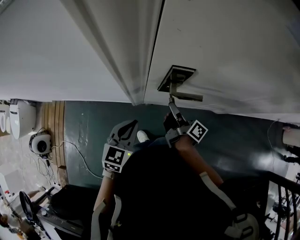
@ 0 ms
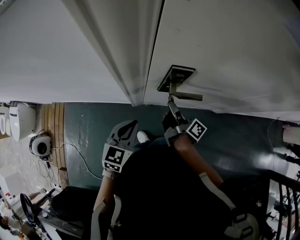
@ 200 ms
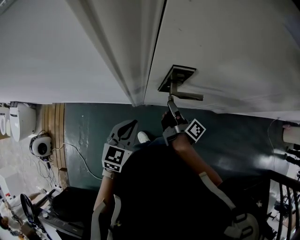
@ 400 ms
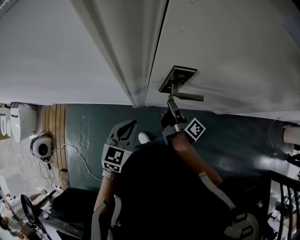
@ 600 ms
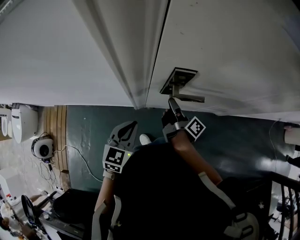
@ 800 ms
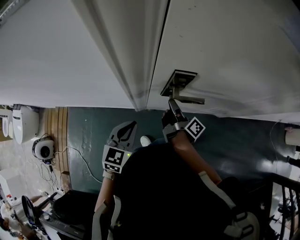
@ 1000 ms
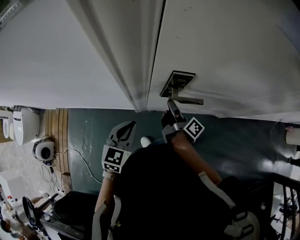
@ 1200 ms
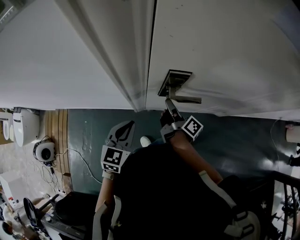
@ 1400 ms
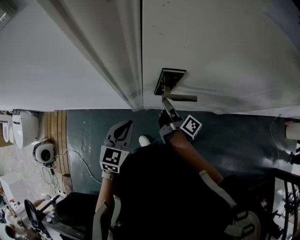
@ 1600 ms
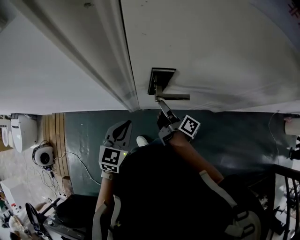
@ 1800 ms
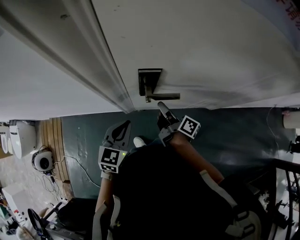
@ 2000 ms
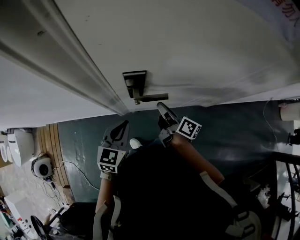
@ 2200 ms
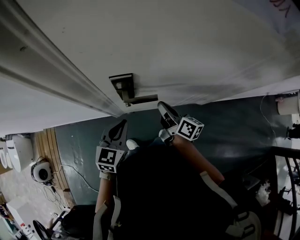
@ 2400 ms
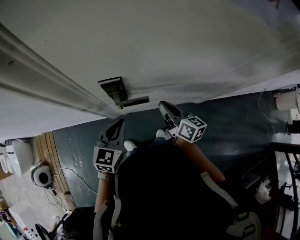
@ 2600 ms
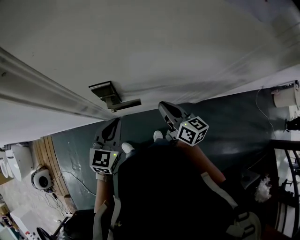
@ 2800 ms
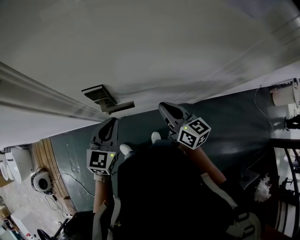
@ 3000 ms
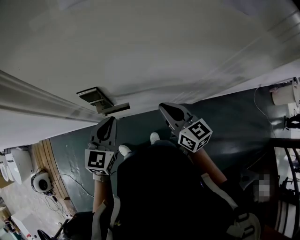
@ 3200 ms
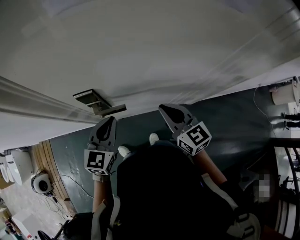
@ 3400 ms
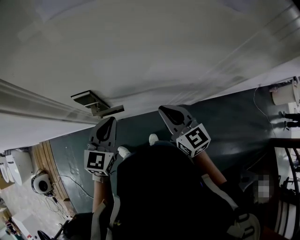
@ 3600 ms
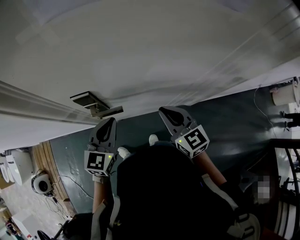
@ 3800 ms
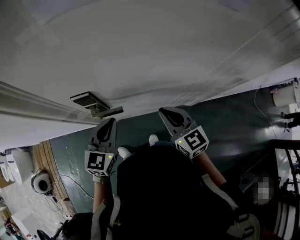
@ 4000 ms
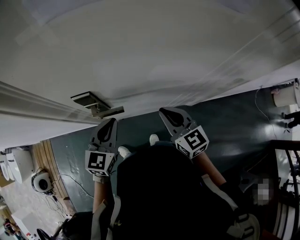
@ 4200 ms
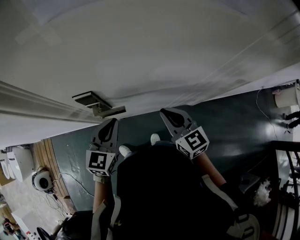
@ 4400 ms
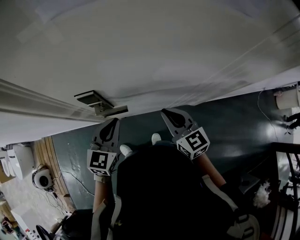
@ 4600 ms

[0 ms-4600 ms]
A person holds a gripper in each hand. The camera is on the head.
0 ms to 1600 ms: The grippers make only small movements.
1600 ms to 3000 ms: The right gripper is displaced to the right and upward by some 25 cm, and rotates around the line of its fingers by some 50 degrees, counterclockwise from behind; the left gripper heads to the right, covering about 15 cm.
3000 ms to 4600 ms: The right gripper rotates roughly 20 degrees.

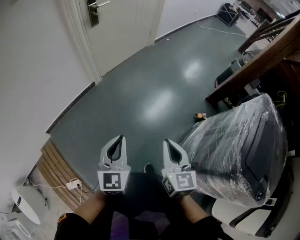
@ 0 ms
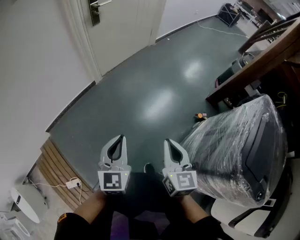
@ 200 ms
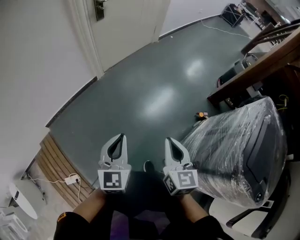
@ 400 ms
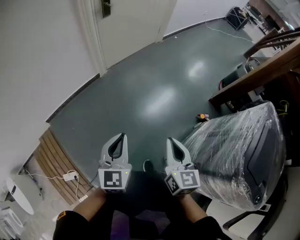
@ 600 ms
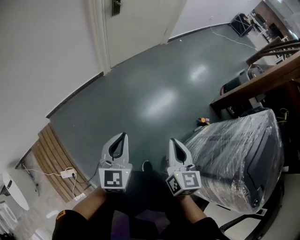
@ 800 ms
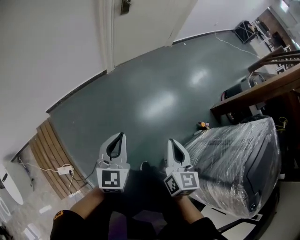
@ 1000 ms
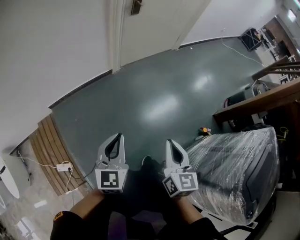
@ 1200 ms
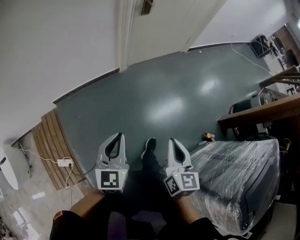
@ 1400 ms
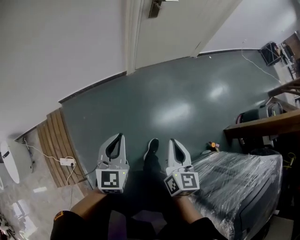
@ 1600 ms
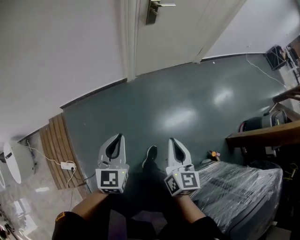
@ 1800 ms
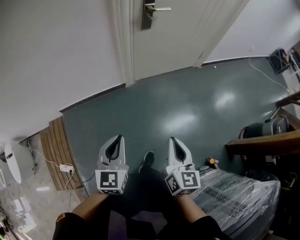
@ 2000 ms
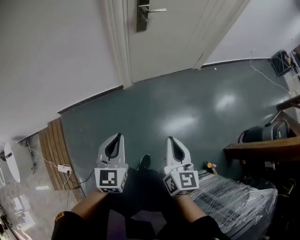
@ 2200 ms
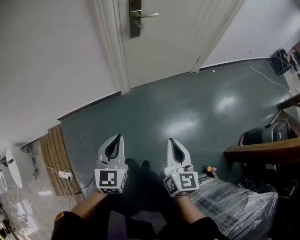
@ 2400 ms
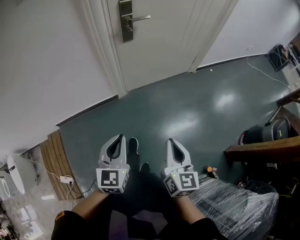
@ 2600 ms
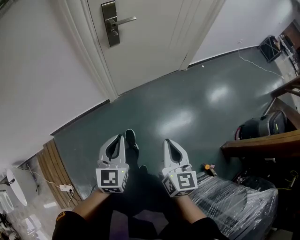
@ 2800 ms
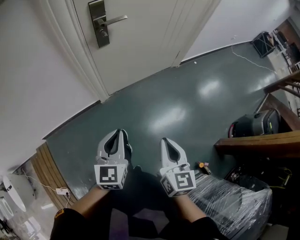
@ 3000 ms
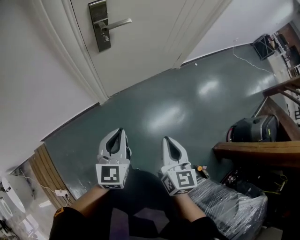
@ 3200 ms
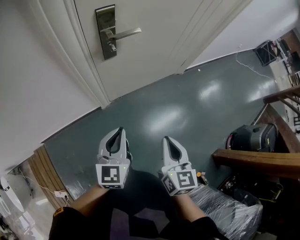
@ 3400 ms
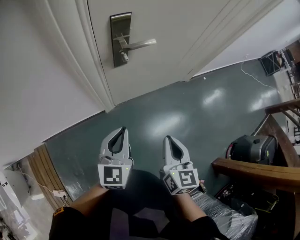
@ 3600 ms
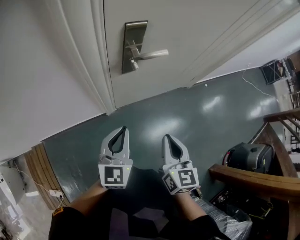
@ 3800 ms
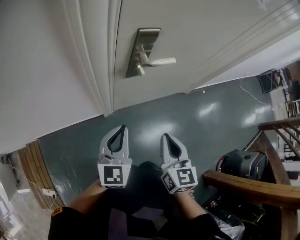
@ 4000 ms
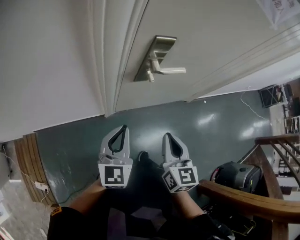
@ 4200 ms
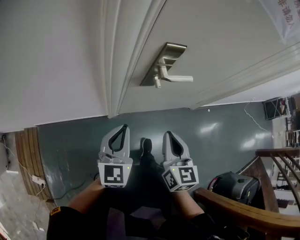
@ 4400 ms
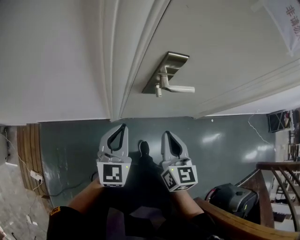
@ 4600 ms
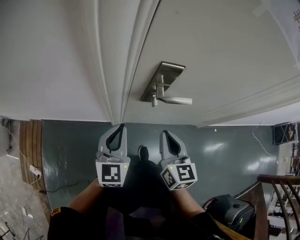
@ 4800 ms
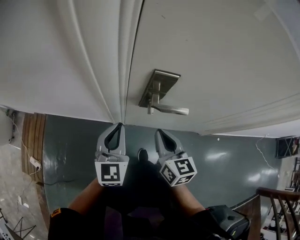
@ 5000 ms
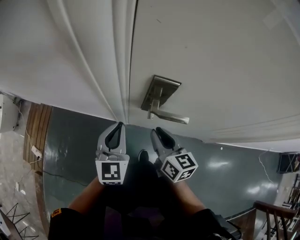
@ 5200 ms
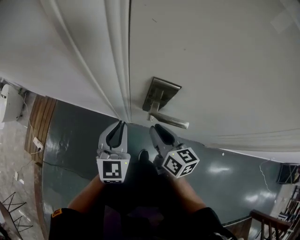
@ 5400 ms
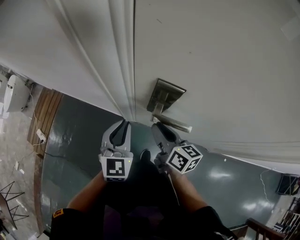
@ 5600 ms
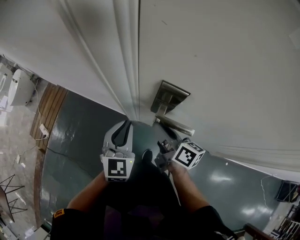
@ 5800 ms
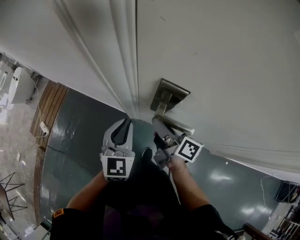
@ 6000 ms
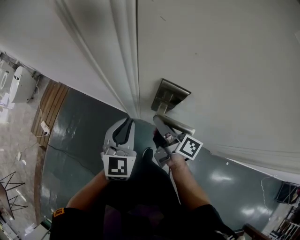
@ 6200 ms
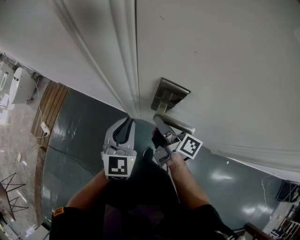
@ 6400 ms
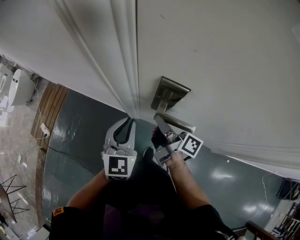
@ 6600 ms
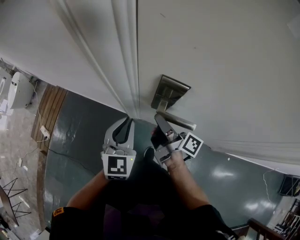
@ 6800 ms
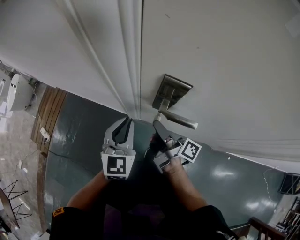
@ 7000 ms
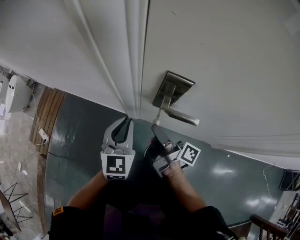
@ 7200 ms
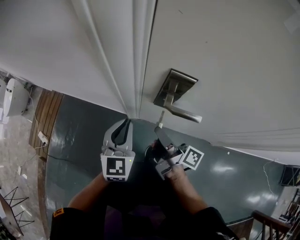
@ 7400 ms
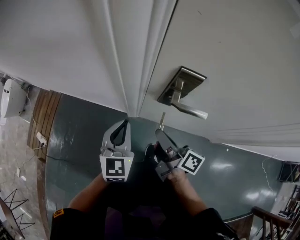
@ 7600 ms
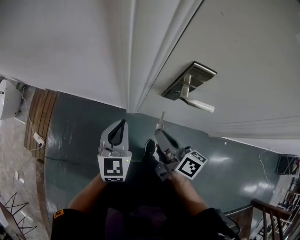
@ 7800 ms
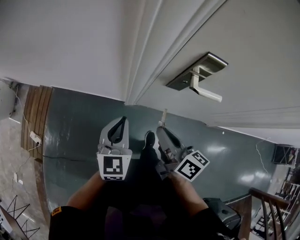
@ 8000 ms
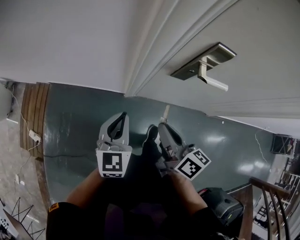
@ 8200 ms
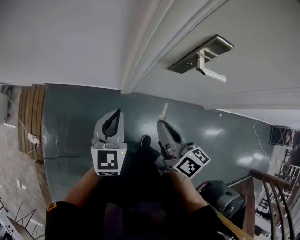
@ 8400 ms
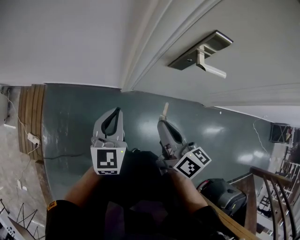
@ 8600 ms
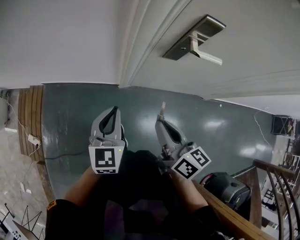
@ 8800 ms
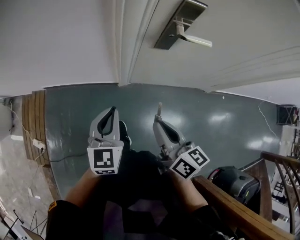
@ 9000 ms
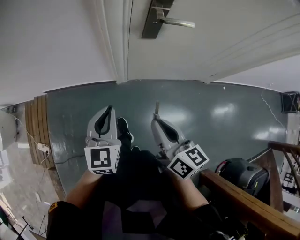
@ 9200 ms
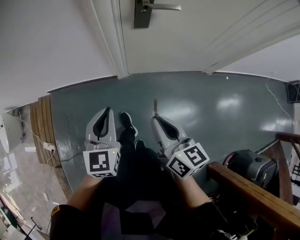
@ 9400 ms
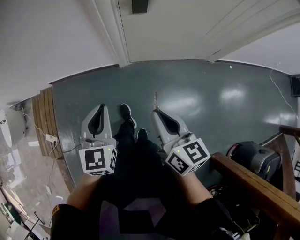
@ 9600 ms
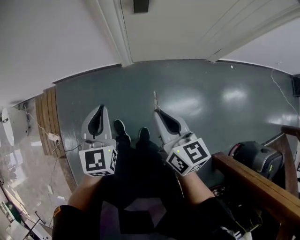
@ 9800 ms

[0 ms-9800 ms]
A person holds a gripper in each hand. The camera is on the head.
0 ms to 1400 ms: The left gripper is displaced to the left by some 15 cm; the right gripper heads to the left and forward, covering about 15 cm.
1400 ms to 2800 ms: Both grippers move forward and to the right, some 35 cm.
2800 ms to 4200 ms: Both grippers move forward, some 35 cm.
4200 ms to 5600 ms: The left gripper ends up some 15 cm from where it was, and turns by approximately 40 degrees. The right gripper changes place by some 20 cm, and turns by some 60 degrees.
5600 ms to 7000 ms: The right gripper rotates around the line of its fingers by roughly 40 degrees, clockwise from behind.
7000 ms to 8400 ms: The right gripper goes some 20 cm to the left and backward, and twists some 40 degrees counterclockwise, seen from behind; the left gripper shifts about 15 cm to the left.
8400 ms to 9800 ms: The grippers both shift backward by some 25 cm.

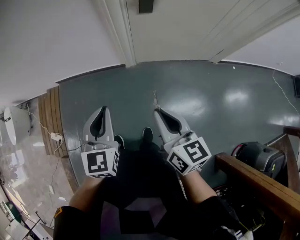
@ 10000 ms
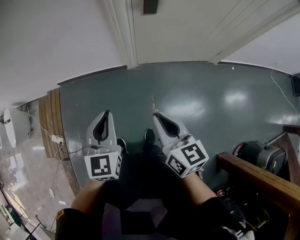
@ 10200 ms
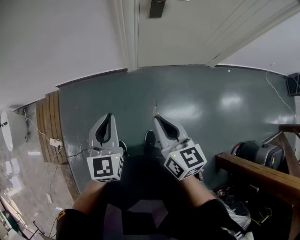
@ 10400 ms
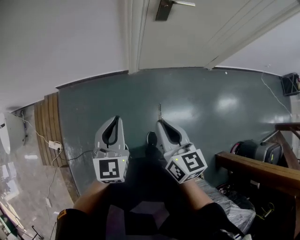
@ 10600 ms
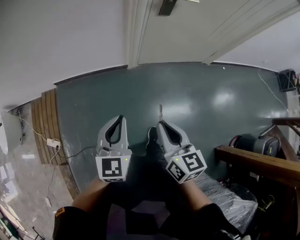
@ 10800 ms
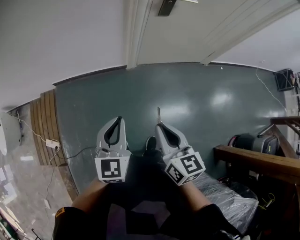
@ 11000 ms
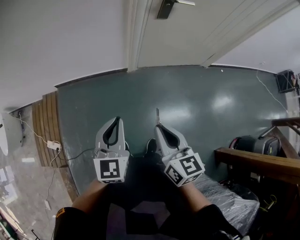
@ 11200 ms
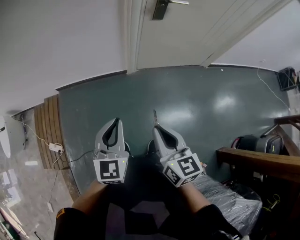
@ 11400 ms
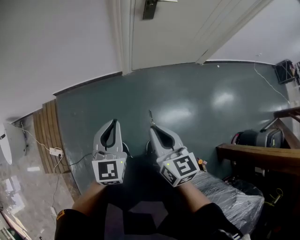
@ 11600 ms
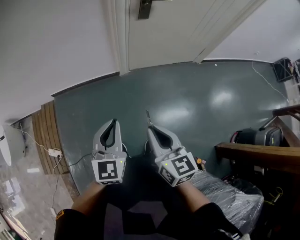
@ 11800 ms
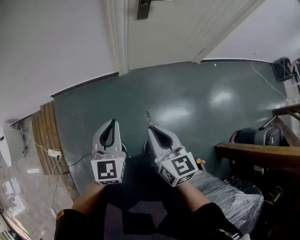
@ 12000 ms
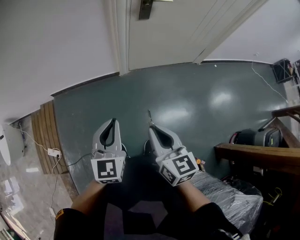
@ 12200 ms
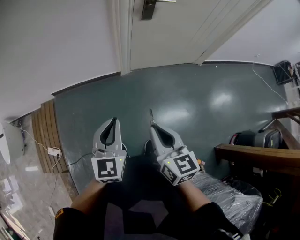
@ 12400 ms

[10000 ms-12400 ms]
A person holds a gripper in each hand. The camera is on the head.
10000 ms to 11200 ms: The two grippers go roughly 20 cm to the left and backward.
11200 ms to 12400 ms: The grippers make only small movements.

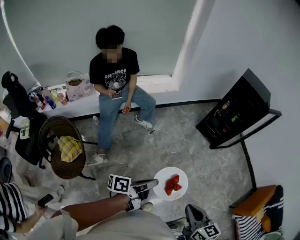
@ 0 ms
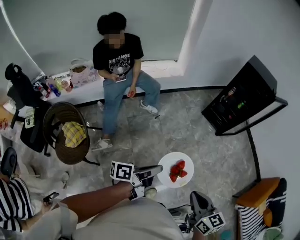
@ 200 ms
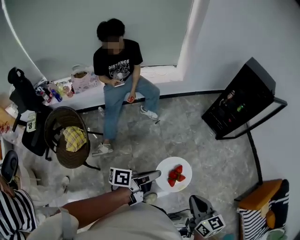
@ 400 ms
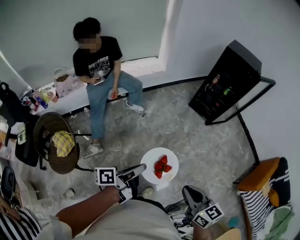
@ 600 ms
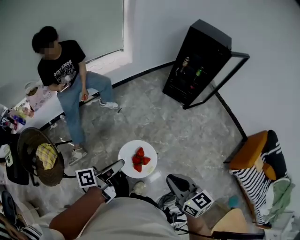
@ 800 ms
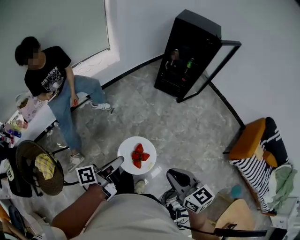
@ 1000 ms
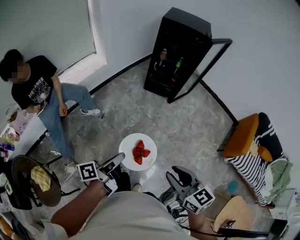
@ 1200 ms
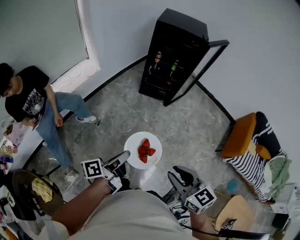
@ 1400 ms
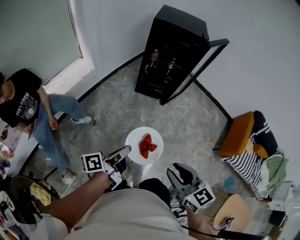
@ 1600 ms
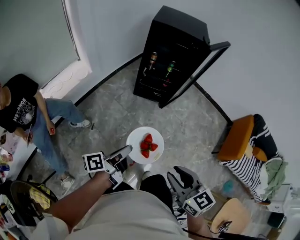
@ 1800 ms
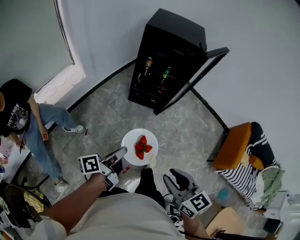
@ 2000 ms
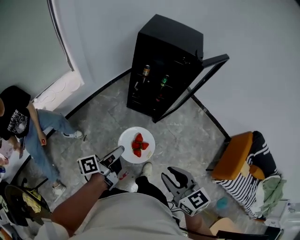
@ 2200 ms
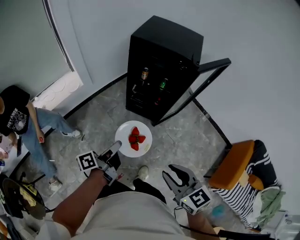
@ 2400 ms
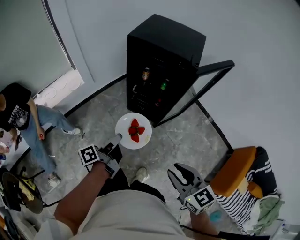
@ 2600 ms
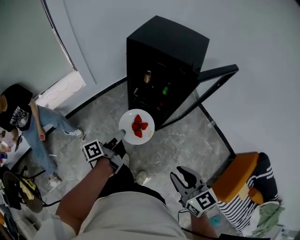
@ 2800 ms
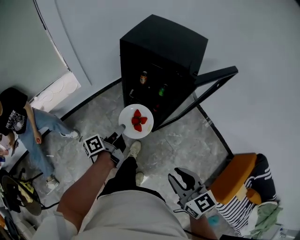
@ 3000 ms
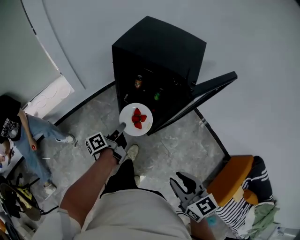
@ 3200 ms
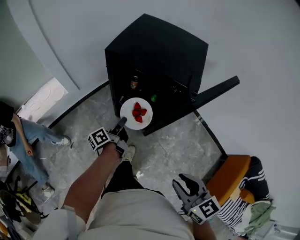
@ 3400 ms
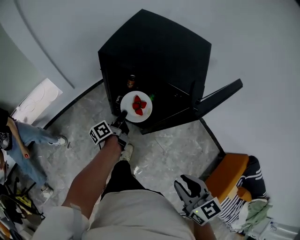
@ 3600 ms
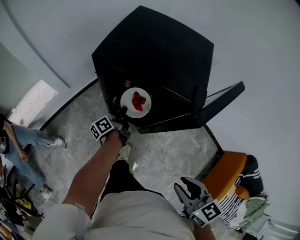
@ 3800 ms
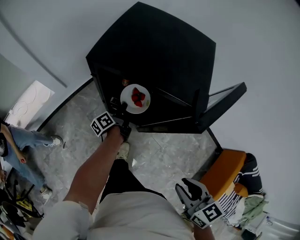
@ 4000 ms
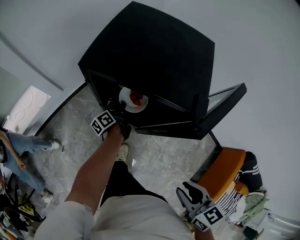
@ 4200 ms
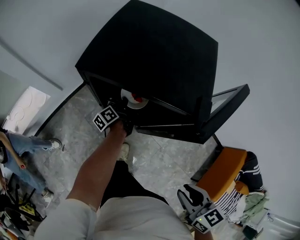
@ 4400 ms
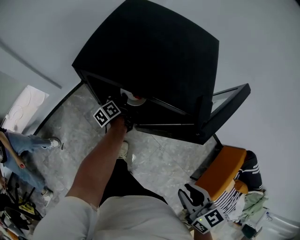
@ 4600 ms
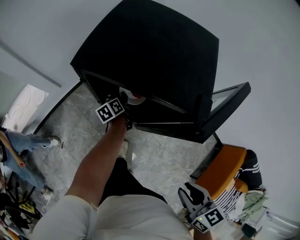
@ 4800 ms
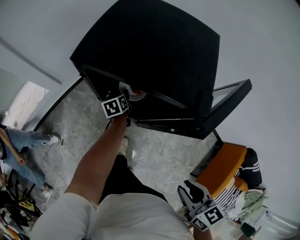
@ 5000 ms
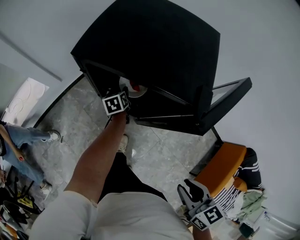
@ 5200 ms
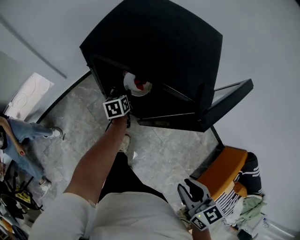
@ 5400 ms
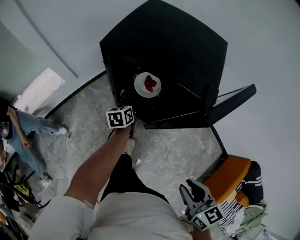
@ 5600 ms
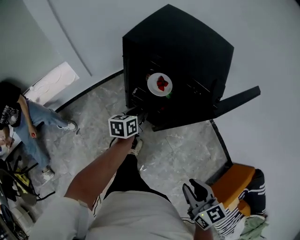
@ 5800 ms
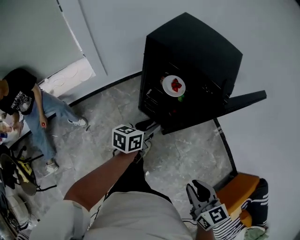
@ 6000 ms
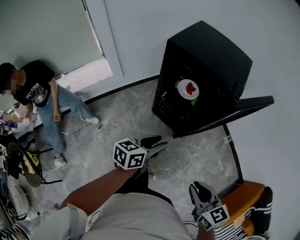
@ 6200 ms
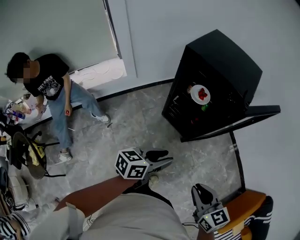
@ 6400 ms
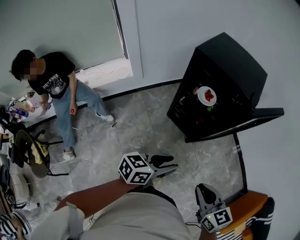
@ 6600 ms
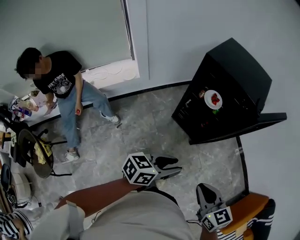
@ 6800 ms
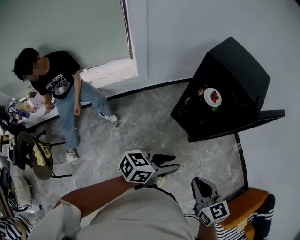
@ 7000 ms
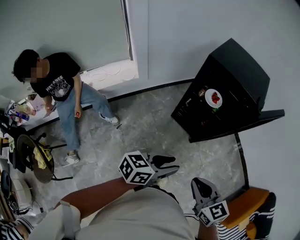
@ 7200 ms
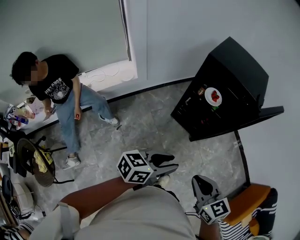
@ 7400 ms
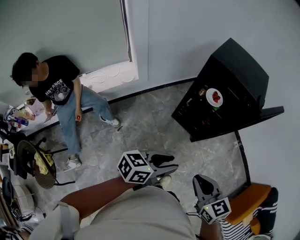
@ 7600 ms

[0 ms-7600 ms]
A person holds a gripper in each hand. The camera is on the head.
0 ms to 1600 ms: Both grippers move forward and to the right, some 30 cm. The right gripper opens its fingers.
1600 ms to 3000 ms: The pair of grippers is taken forward and to the right, some 40 cm. The left gripper changes its angle by about 30 degrees.
3000 ms to 4600 ms: The right gripper is displaced forward and to the right by some 20 cm, and rotates approximately 20 degrees. The left gripper heads forward and downward, covering about 40 cm, and swivels roughly 20 degrees.
4600 ms to 6000 ms: The left gripper shifts about 30 cm backward and upward, rotates some 40 degrees, and opens; the right gripper travels backward by some 10 cm.
6000 ms to 7600 ms: The left gripper is displaced backward, to the left and upward by some 30 cm, and changes its angle by approximately 20 degrees. Meanwhile the right gripper shifts approximately 25 cm to the left and backward.
